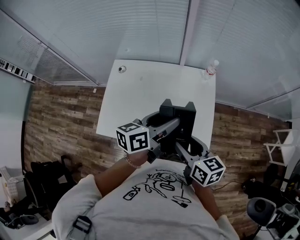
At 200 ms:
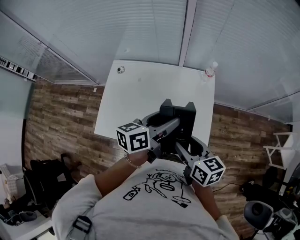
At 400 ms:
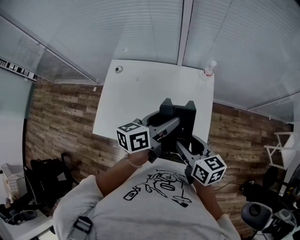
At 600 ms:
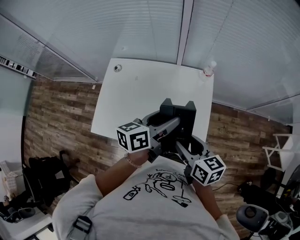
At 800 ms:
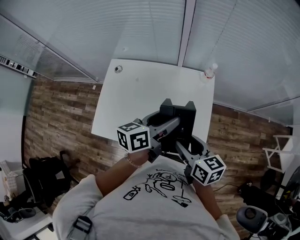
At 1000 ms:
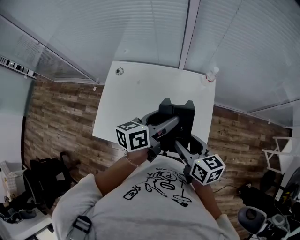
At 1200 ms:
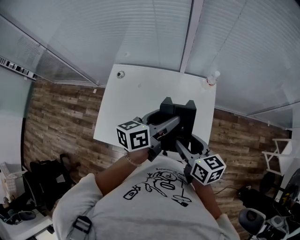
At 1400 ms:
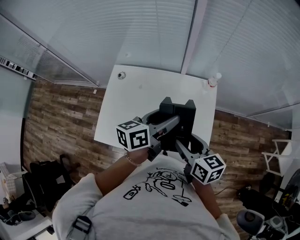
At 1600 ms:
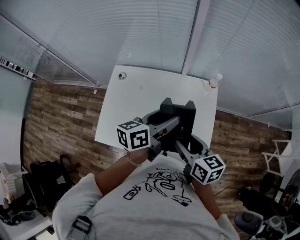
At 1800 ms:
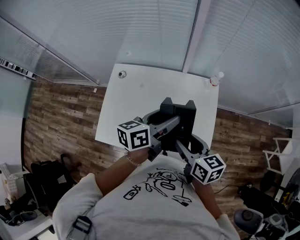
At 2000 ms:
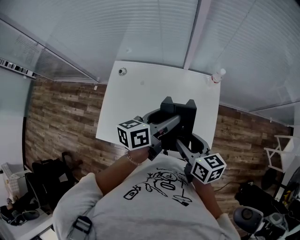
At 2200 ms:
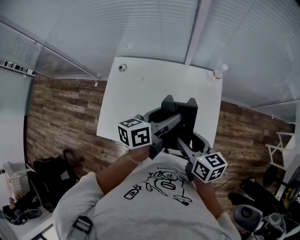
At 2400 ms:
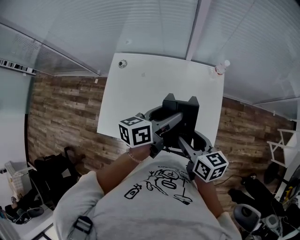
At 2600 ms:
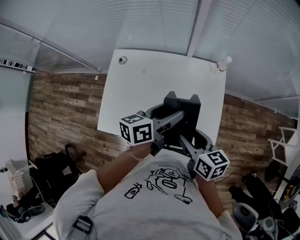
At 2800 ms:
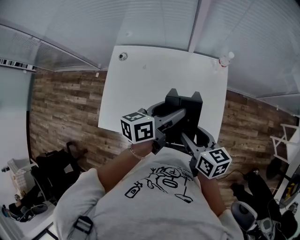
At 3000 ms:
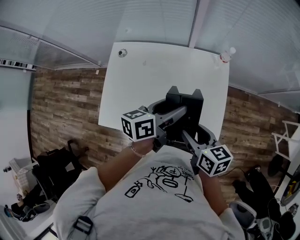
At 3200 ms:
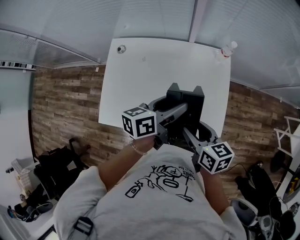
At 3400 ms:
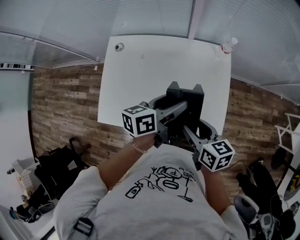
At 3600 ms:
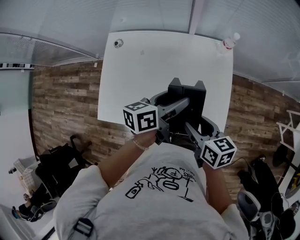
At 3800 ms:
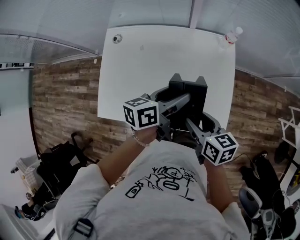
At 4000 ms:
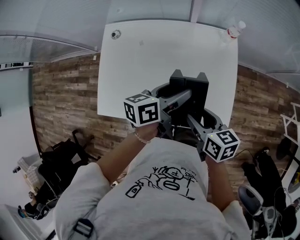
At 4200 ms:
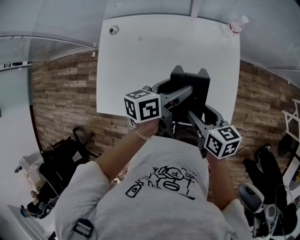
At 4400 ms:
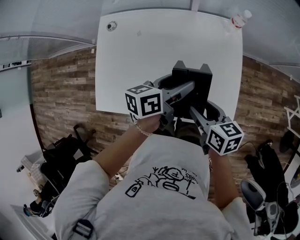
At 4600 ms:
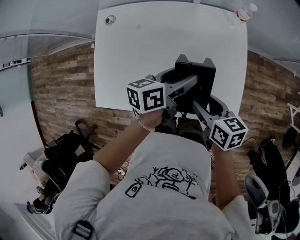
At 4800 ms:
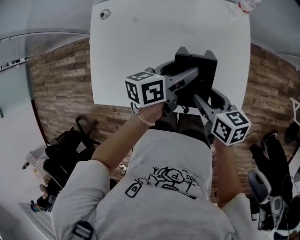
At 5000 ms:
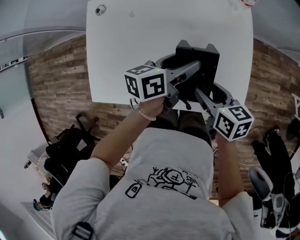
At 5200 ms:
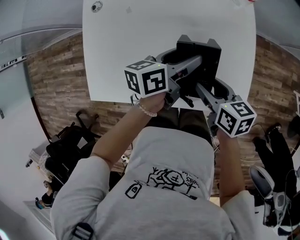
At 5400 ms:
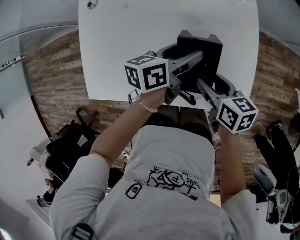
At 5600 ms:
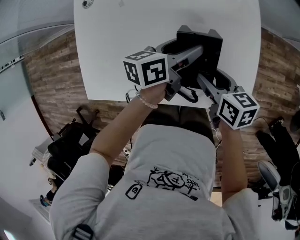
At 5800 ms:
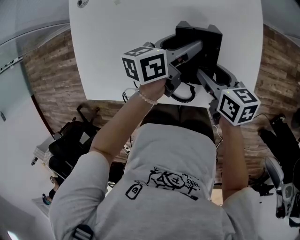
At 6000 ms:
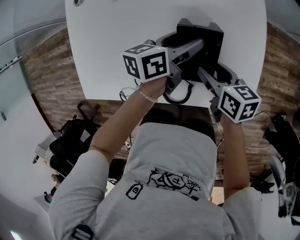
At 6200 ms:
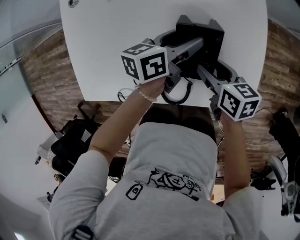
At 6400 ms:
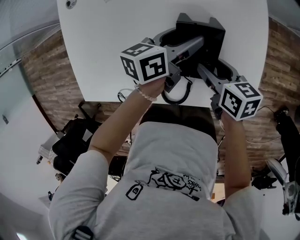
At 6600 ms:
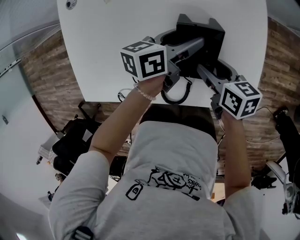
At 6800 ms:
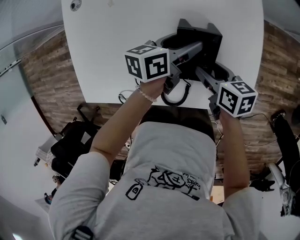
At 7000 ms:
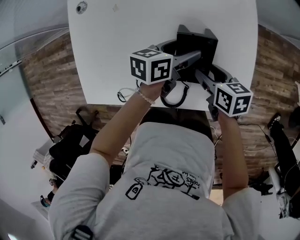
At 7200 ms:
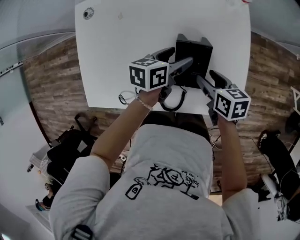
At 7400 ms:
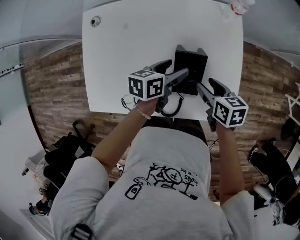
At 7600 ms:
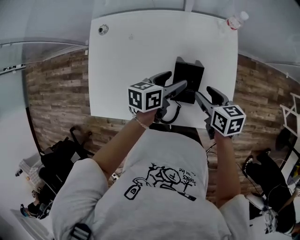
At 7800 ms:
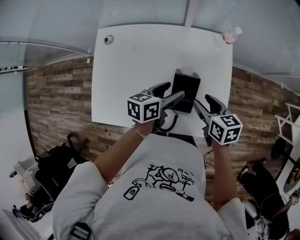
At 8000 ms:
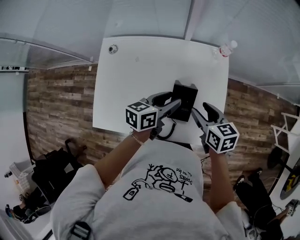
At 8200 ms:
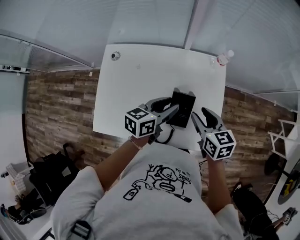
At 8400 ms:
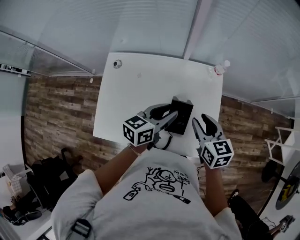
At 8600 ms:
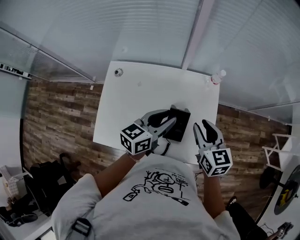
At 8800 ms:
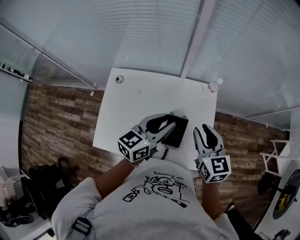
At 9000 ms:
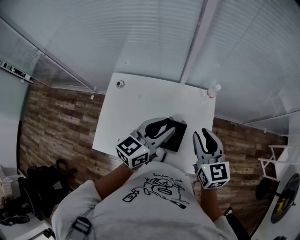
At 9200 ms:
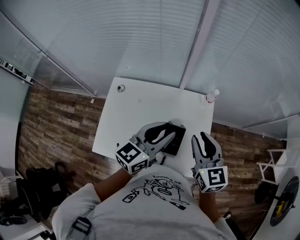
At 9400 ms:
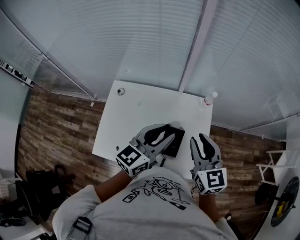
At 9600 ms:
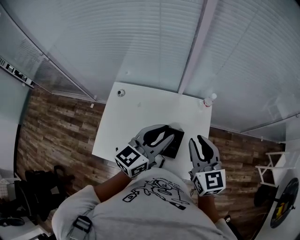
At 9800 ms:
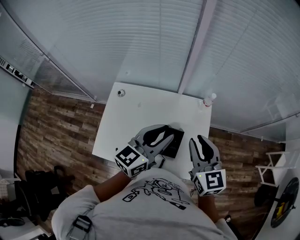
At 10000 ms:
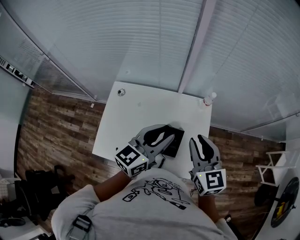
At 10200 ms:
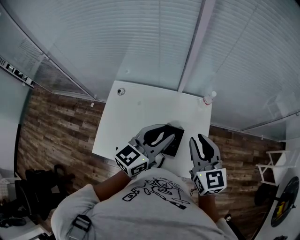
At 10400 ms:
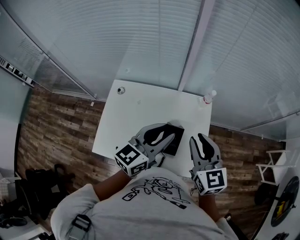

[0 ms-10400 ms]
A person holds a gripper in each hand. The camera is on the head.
0 ms to 1400 ms: The grippers both shift forward by roughly 10 cm.
1400 ms to 3000 ms: Both grippers travel together downward, approximately 5 cm.
3000 ms to 4400 ms: The grippers both shift downward by roughly 10 cm.
4400 ms to 6000 ms: Both grippers move downward, about 15 cm.
6000 ms to 7400 ms: The right gripper changes place by approximately 5 cm.
7400 ms to 9000 ms: The two grippers go about 30 cm upward. The right gripper swivels approximately 40 degrees, and closes its fingers, while the left gripper changes its angle by approximately 40 degrees, and closes.
9000 ms to 10400 ms: The right gripper shifts by about 5 cm. Meanwhile the left gripper moves some 5 cm.

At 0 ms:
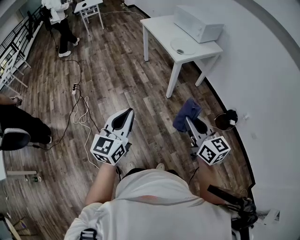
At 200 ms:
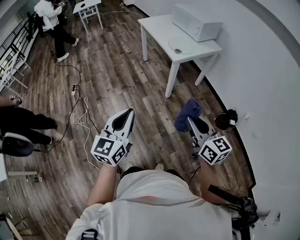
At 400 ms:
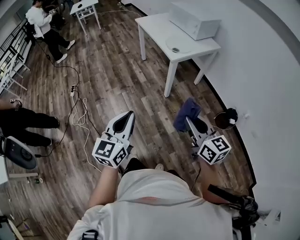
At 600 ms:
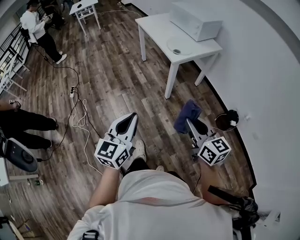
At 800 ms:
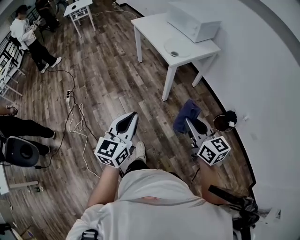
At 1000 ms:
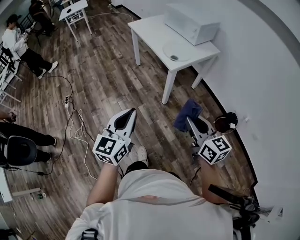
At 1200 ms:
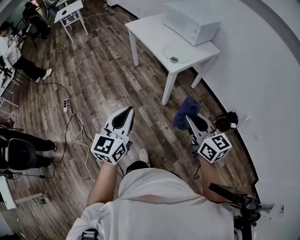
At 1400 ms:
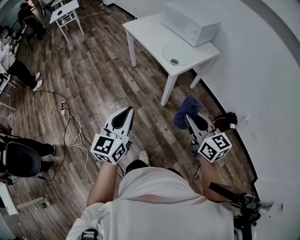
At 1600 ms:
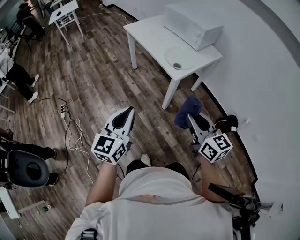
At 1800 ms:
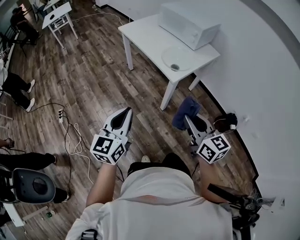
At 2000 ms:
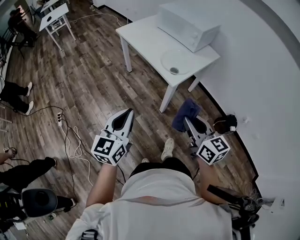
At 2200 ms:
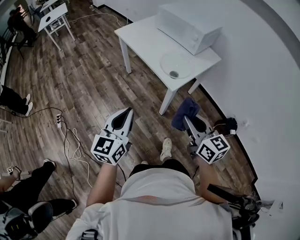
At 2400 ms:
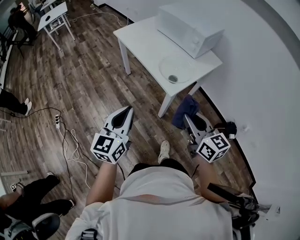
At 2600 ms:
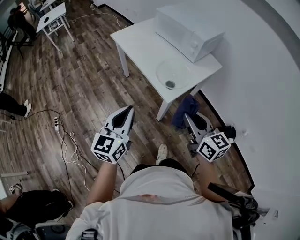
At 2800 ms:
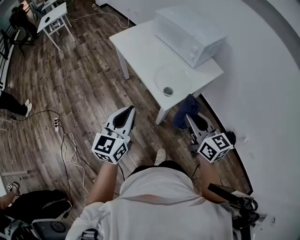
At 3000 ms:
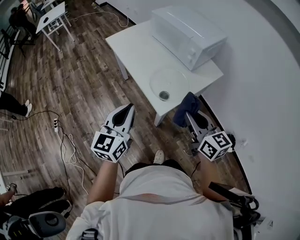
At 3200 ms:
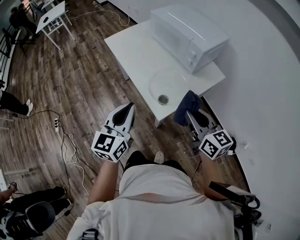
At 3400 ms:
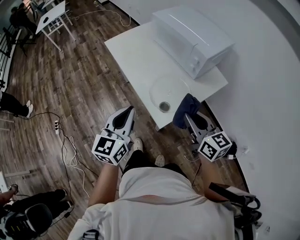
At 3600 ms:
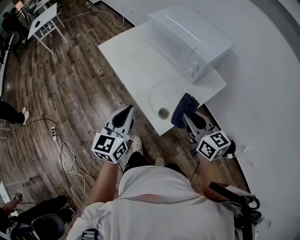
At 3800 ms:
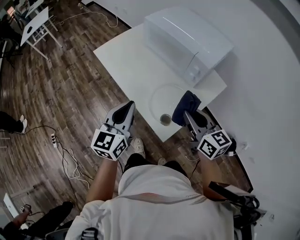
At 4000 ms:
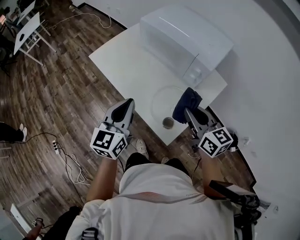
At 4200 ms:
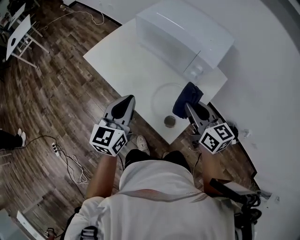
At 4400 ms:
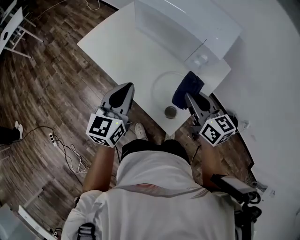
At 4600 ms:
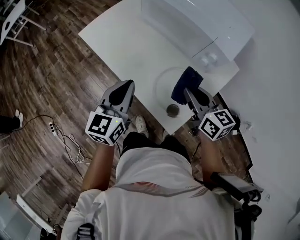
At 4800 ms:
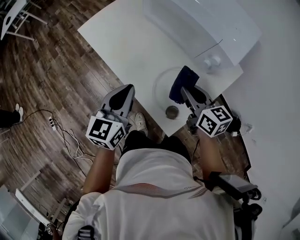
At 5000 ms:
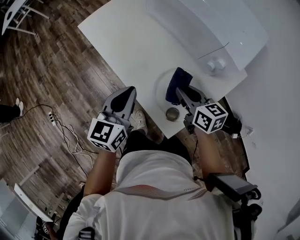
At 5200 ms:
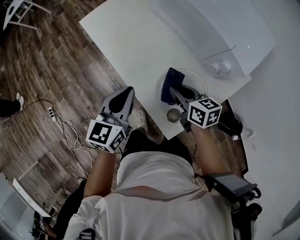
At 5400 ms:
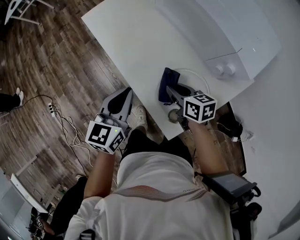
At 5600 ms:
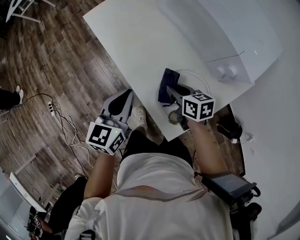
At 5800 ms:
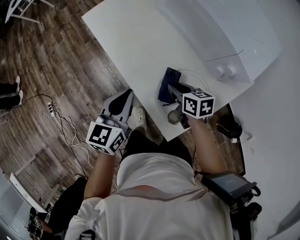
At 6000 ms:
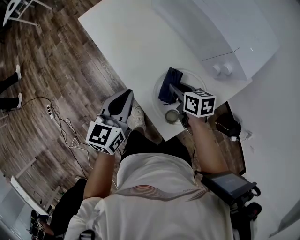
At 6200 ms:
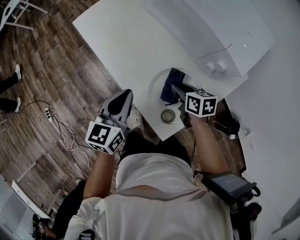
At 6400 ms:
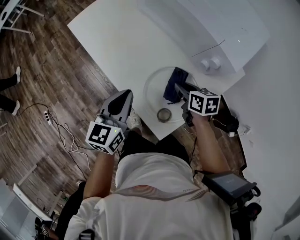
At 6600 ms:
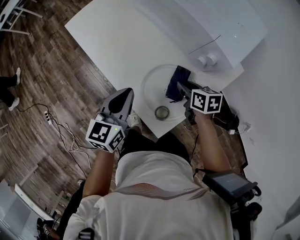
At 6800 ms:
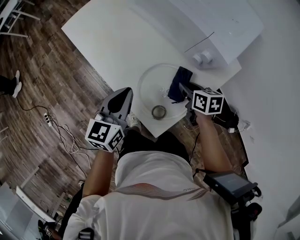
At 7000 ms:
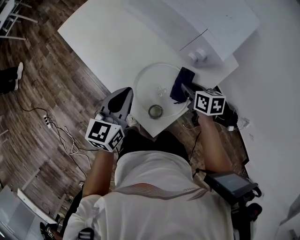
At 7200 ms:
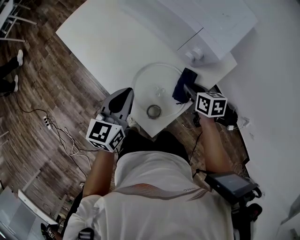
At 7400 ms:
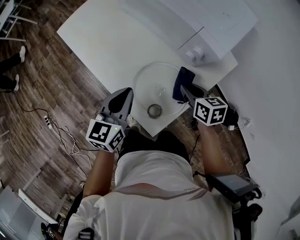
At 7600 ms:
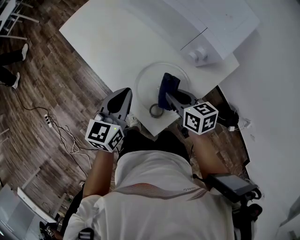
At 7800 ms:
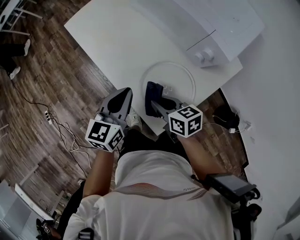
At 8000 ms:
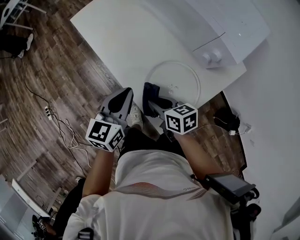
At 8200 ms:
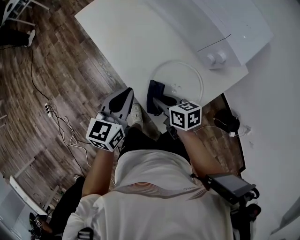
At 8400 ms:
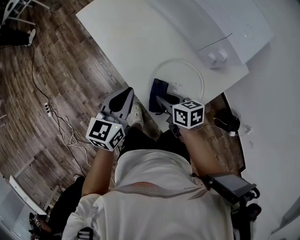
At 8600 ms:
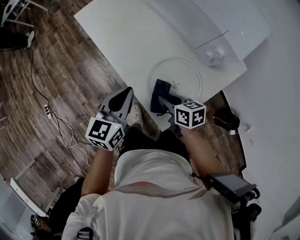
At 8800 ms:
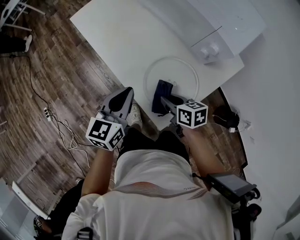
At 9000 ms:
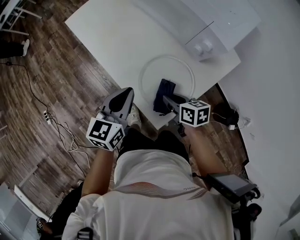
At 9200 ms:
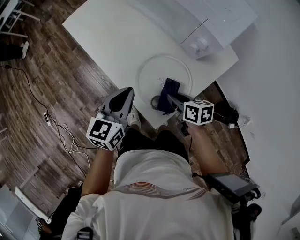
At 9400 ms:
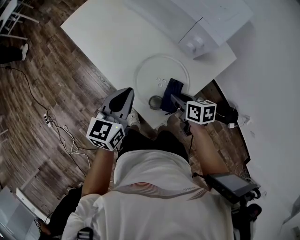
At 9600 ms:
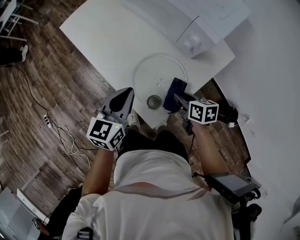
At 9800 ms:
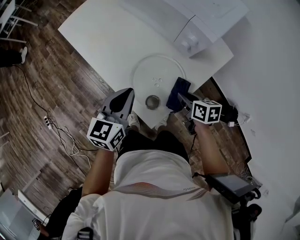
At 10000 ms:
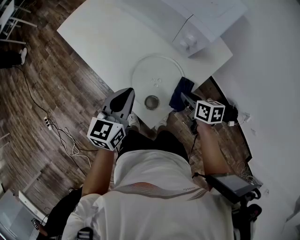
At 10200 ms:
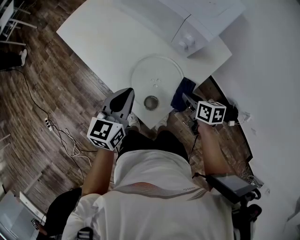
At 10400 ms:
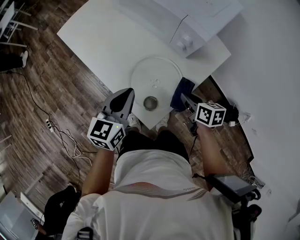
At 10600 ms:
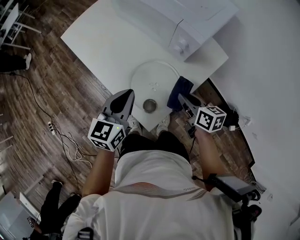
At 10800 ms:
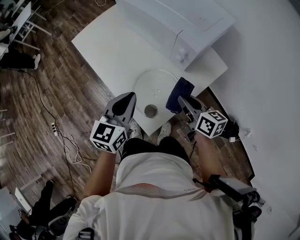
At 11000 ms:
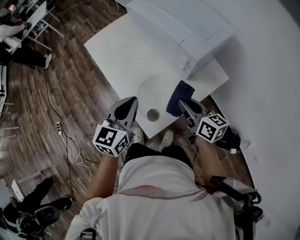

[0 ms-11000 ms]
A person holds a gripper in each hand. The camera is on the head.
0 ms to 1600 ms: Both grippers travel together forward, roughly 25 cm.
1600 ms to 3200 ms: The right gripper travels forward by roughly 35 cm, while the left gripper shifts about 35 cm forward and to the right.
3200 ms to 4800 ms: Both grippers move forward and downward, about 30 cm.
4800 ms to 6200 ms: The right gripper heads downward, covering approximately 15 cm, and rotates about 20 degrees. The left gripper moves roughly 5 cm.
6200 ms to 7800 ms: The right gripper shifts some 10 cm backward, and goes to the right and returns, about 15 cm each way.
7800 ms to 9400 ms: The right gripper shifts about 10 cm to the right.
9400 ms to 11000 ms: The right gripper travels upward by approximately 15 cm, and changes its angle by roughly 30 degrees; the left gripper moves upward, some 10 cm.

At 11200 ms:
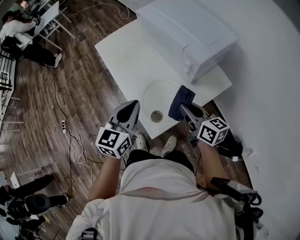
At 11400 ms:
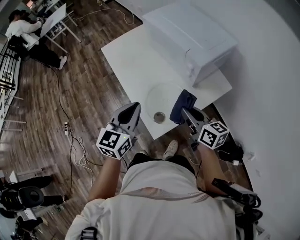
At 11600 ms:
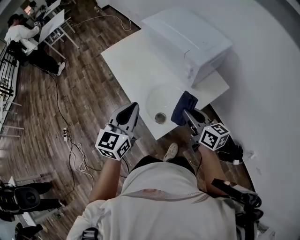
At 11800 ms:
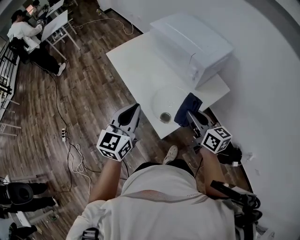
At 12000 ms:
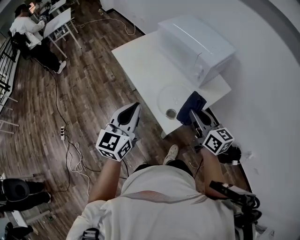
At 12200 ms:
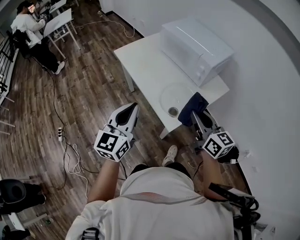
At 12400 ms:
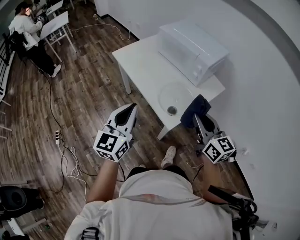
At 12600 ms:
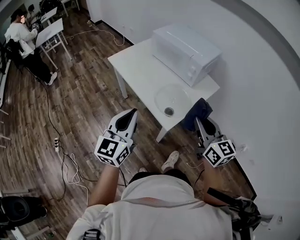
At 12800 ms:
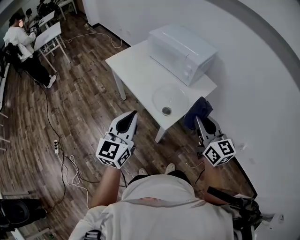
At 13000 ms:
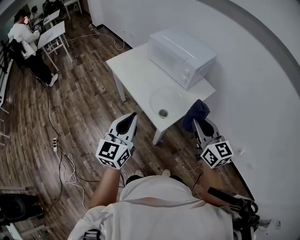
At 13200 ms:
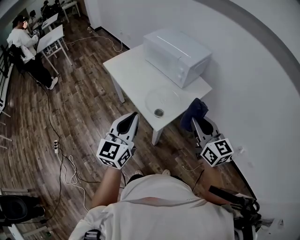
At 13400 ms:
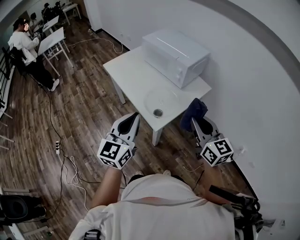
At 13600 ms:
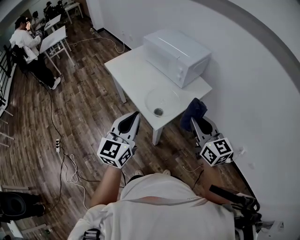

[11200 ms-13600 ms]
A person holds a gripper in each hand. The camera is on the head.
11200 ms to 12400 ms: The left gripper is displaced to the left, backward and upward by about 25 cm, while the right gripper heads backward, upward and to the left, covering roughly 25 cm, and changes its angle by roughly 30 degrees.
12400 ms to 13600 ms: The right gripper shifts about 10 cm to the right, backward and upward. The left gripper goes roughly 10 cm to the right and backward.
